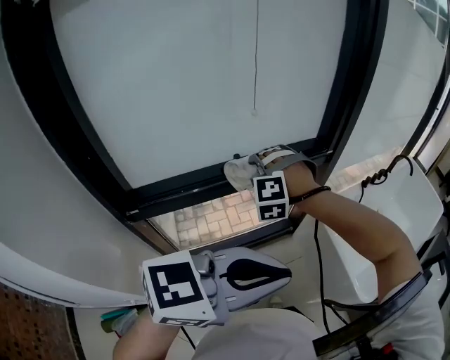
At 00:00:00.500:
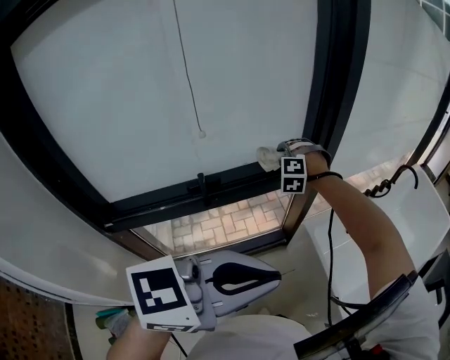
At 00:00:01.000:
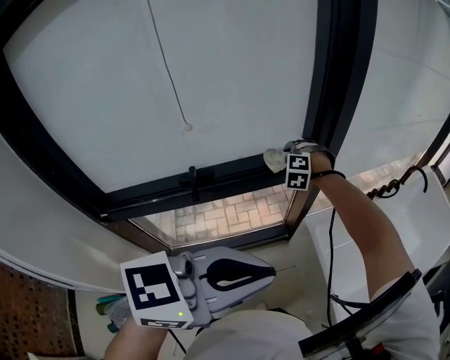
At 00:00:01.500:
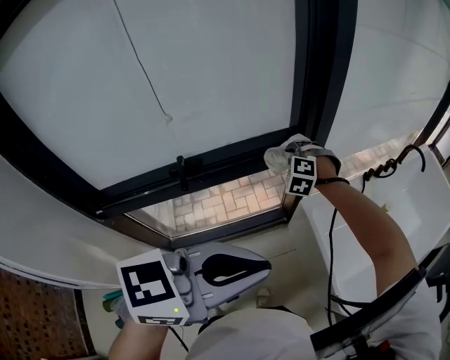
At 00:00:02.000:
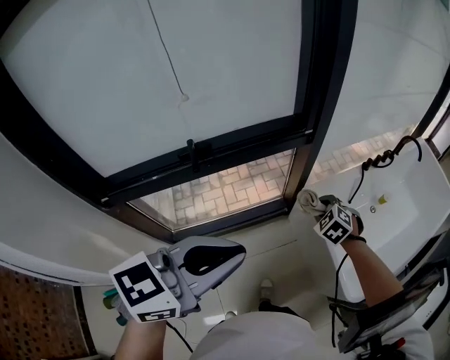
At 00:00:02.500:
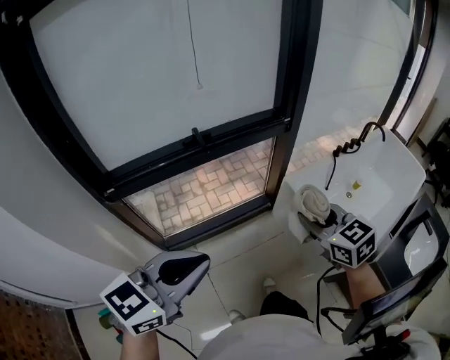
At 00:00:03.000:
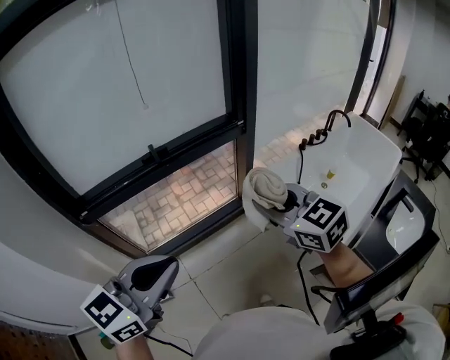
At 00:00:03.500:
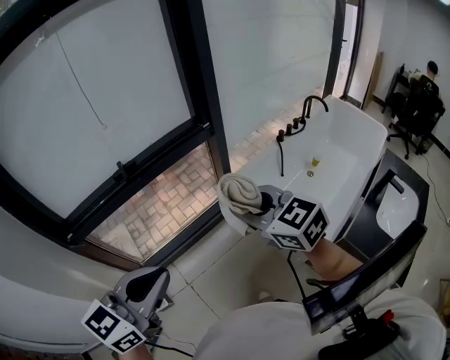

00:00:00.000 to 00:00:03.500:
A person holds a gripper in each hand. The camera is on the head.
00:00:00.000 to 00:00:02.000: The left gripper shifts approximately 10 cm forward, and swivels approximately 20 degrees, while the right gripper travels to the right and downward by roughly 40 cm, and rolls clockwise, seen from behind, by roughly 50 degrees.
00:00:02.000 to 00:00:03.500: The right gripper is displaced upward and backward by some 35 cm, and turns by roughly 40 degrees; the left gripper heads backward, covering roughly 10 cm.

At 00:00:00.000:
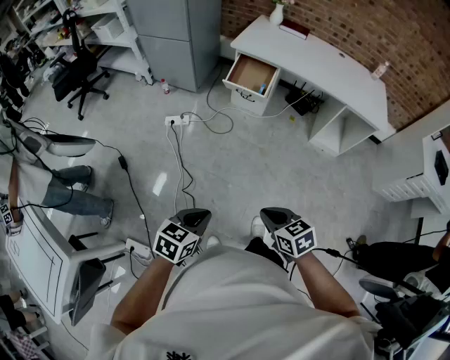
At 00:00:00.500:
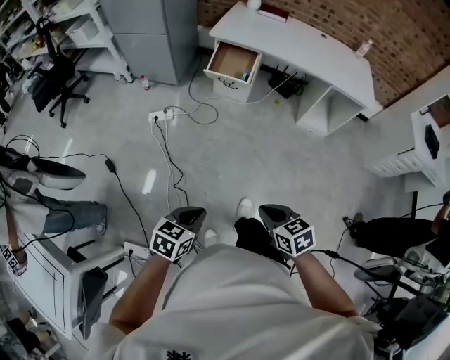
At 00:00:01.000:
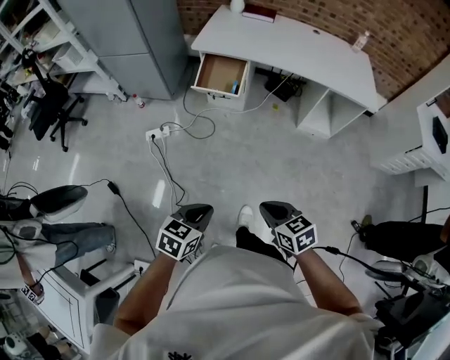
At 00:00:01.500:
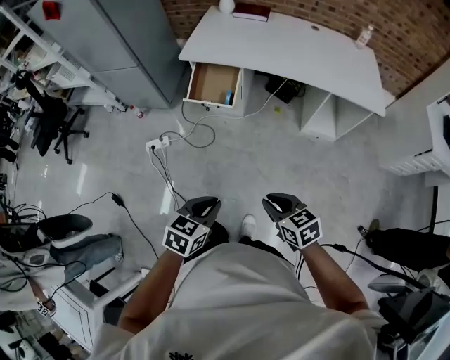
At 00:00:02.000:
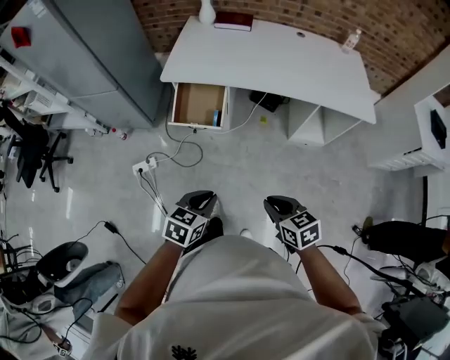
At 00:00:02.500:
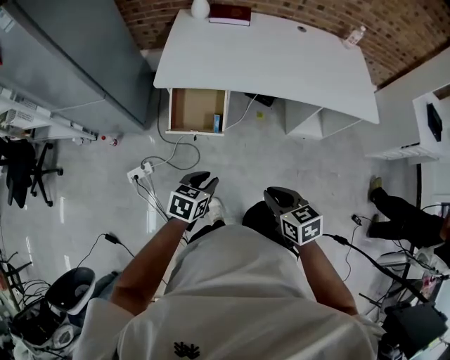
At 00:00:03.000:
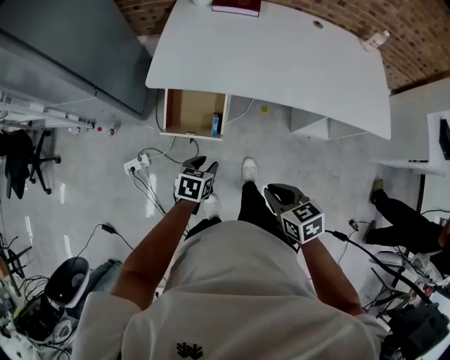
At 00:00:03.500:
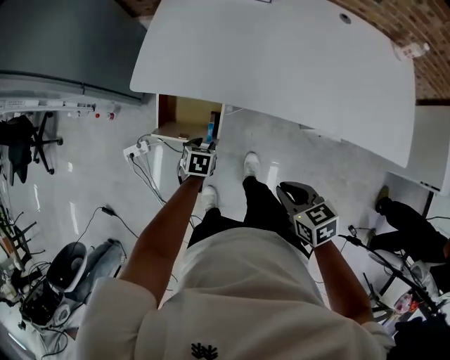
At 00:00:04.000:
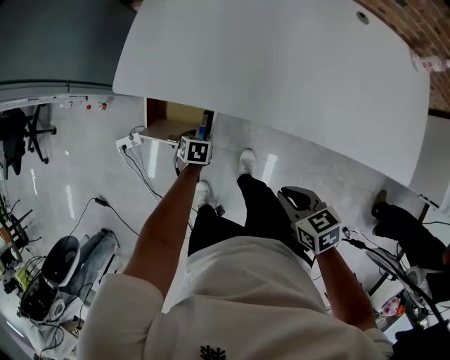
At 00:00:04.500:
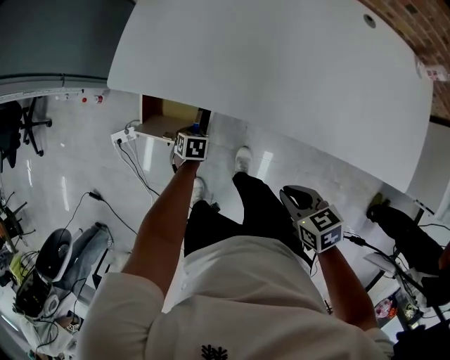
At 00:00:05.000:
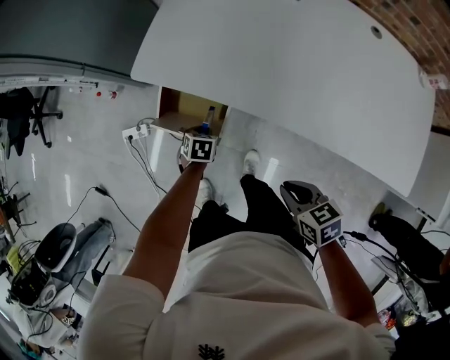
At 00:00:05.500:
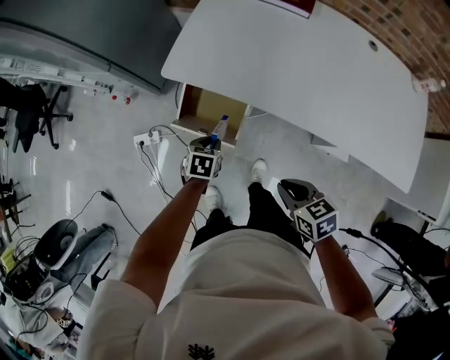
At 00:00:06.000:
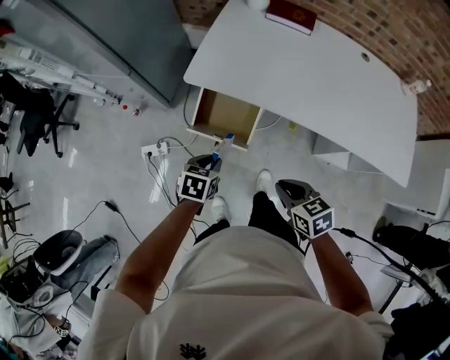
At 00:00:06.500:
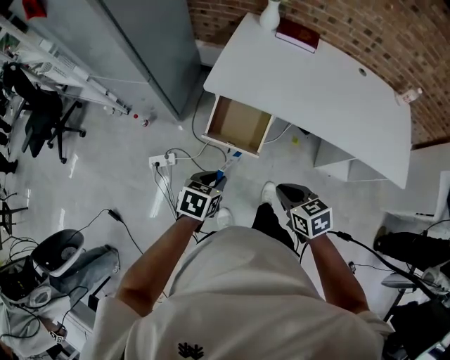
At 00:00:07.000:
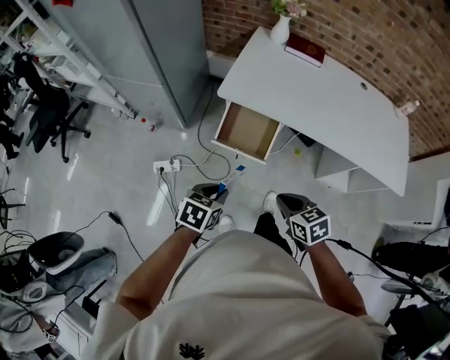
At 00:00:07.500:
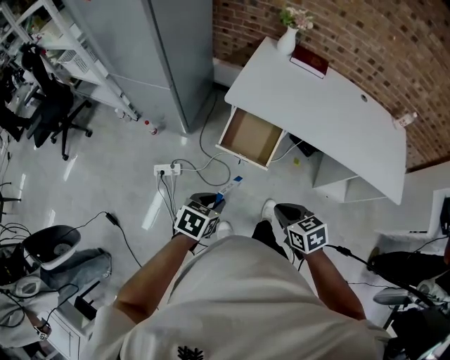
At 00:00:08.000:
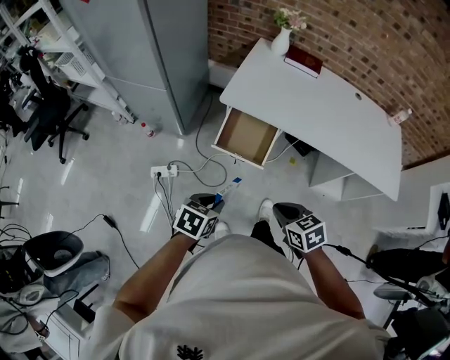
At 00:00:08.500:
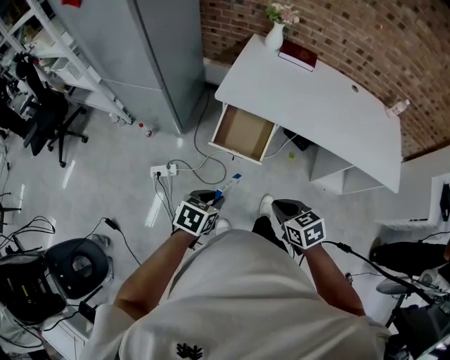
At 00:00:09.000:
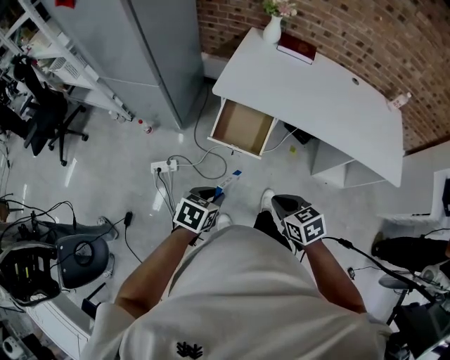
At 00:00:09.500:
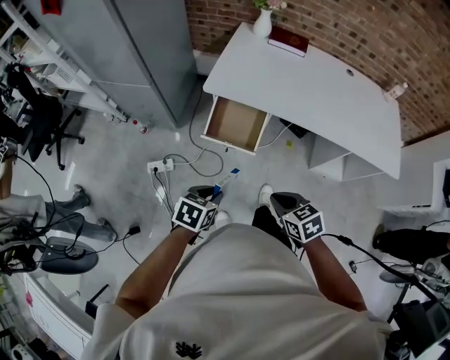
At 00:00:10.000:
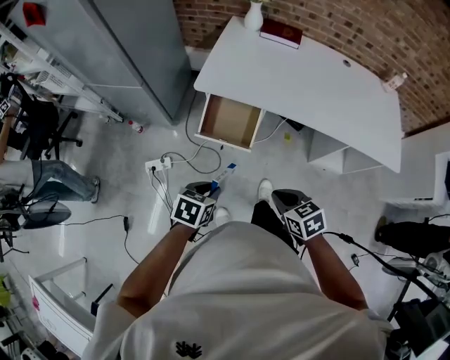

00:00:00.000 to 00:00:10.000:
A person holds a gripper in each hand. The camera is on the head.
00:00:00.000 to 00:00:02.000: Both grippers are carried forward, some 50 cm.
00:00:02.000 to 00:00:04.000: The two grippers travel together, about 50 cm. The right gripper turns by about 20 degrees. Meanwhile the left gripper points its fingers roughly 30 degrees further downward, and opens its fingers.
00:00:04.000 to 00:00:06.000: The right gripper changes place by some 25 cm; the left gripper moves upward, about 25 cm, rotates approximately 20 degrees, and closes its fingers.
00:00:06.000 to 00:00:08.000: The left gripper goes approximately 25 cm backward, to the left and upward. Meanwhile the right gripper goes roughly 20 cm to the left and backward.
00:00:08.000 to 00:00:10.000: The grippers both shift to the right by roughly 10 cm.

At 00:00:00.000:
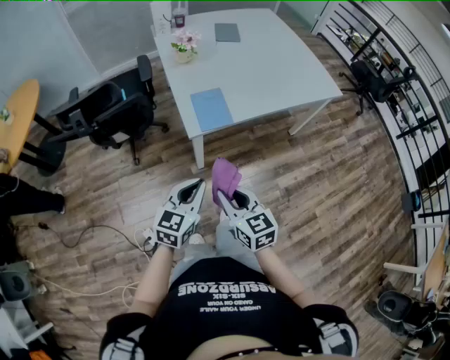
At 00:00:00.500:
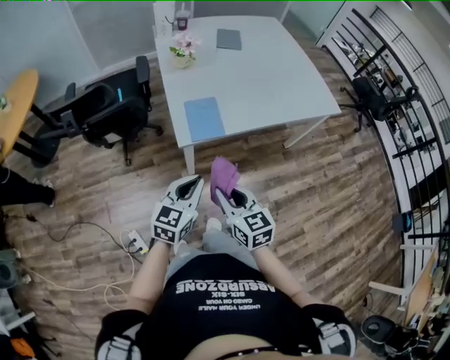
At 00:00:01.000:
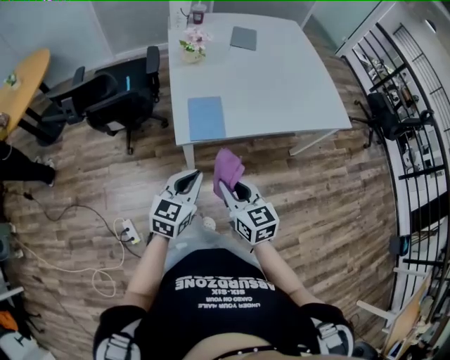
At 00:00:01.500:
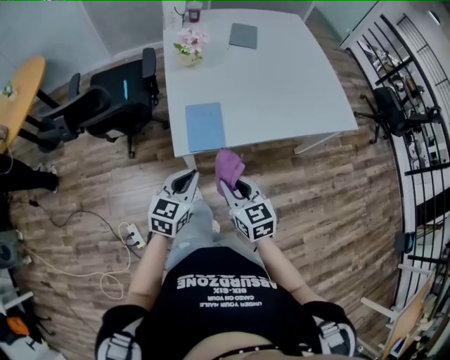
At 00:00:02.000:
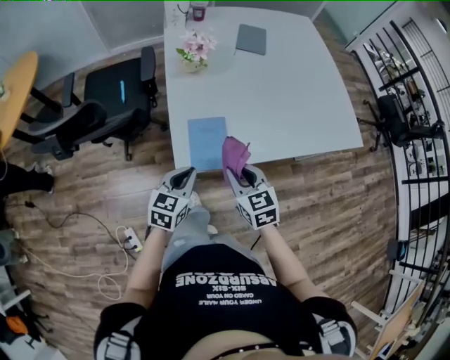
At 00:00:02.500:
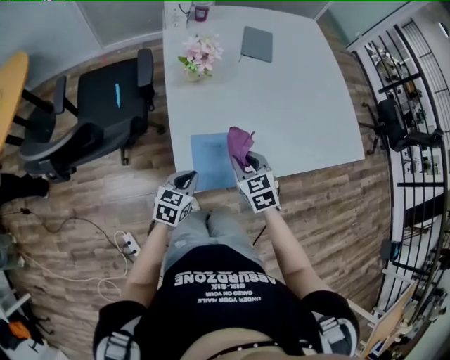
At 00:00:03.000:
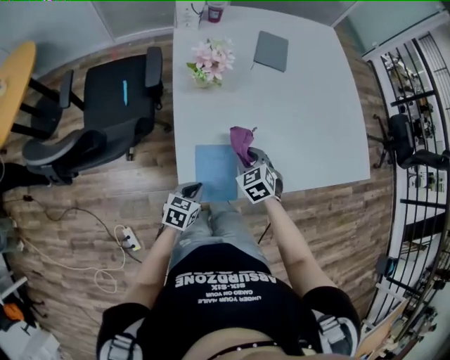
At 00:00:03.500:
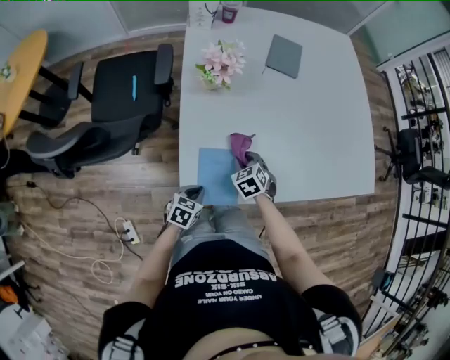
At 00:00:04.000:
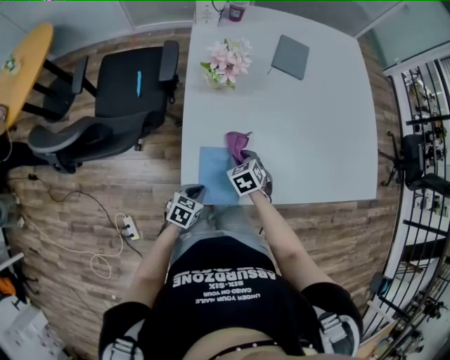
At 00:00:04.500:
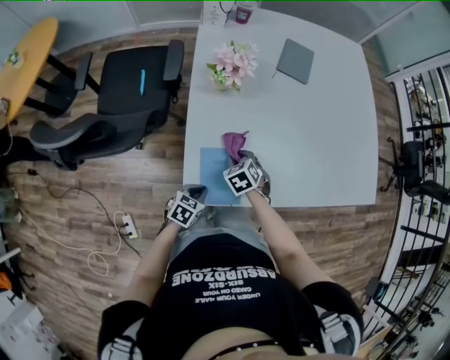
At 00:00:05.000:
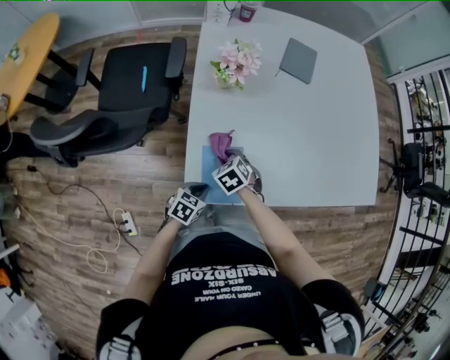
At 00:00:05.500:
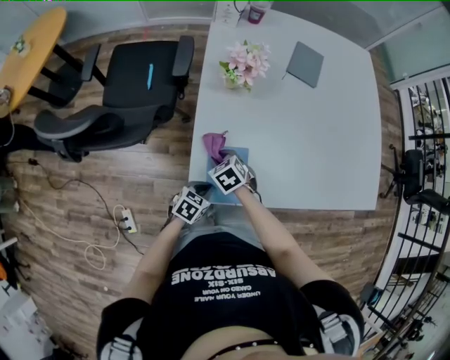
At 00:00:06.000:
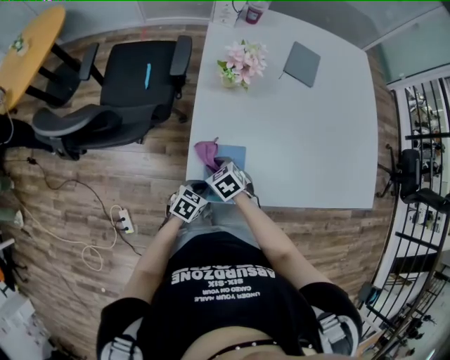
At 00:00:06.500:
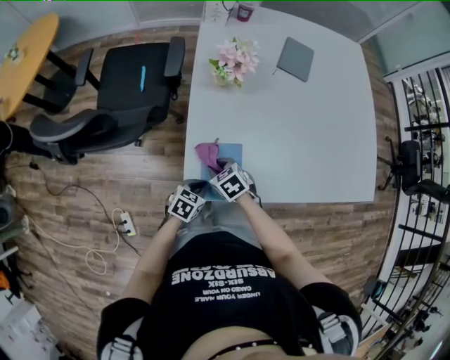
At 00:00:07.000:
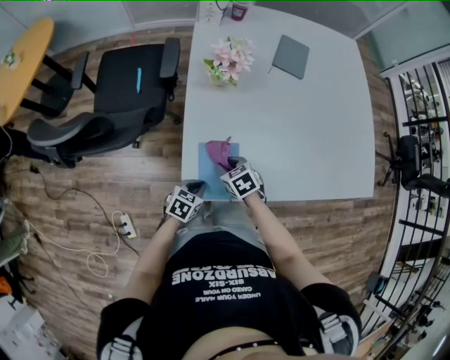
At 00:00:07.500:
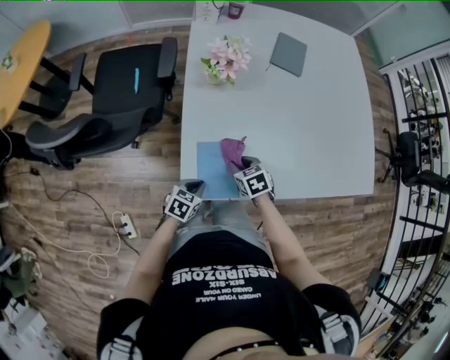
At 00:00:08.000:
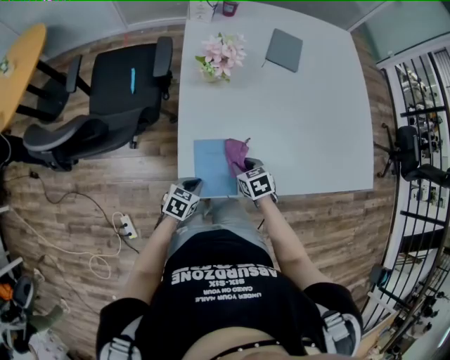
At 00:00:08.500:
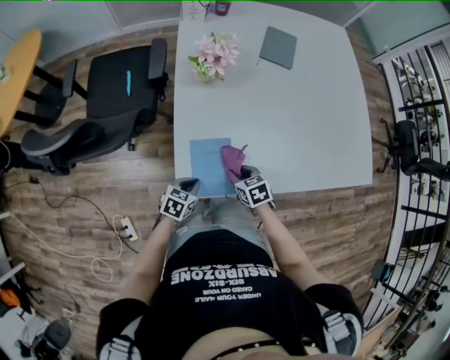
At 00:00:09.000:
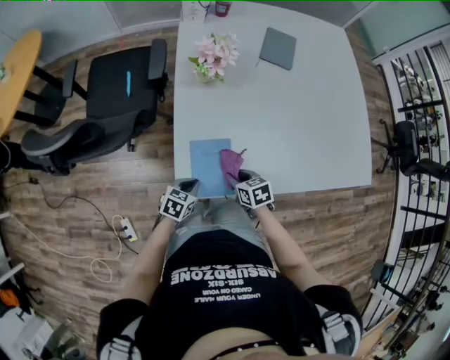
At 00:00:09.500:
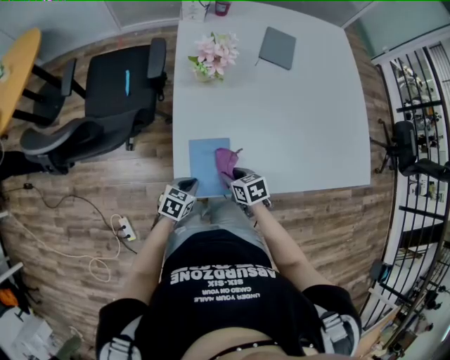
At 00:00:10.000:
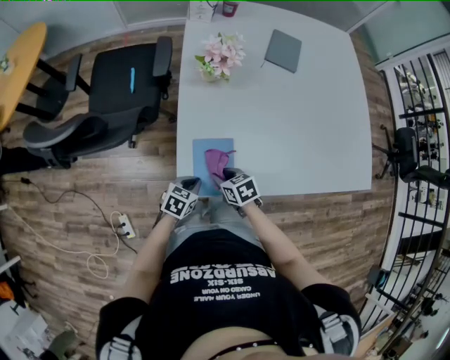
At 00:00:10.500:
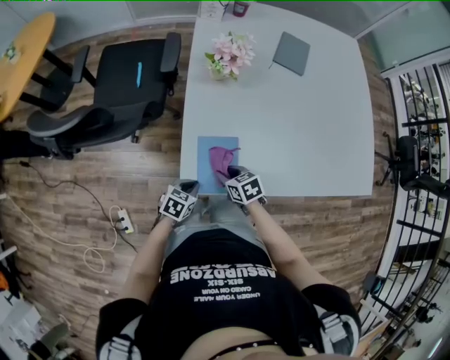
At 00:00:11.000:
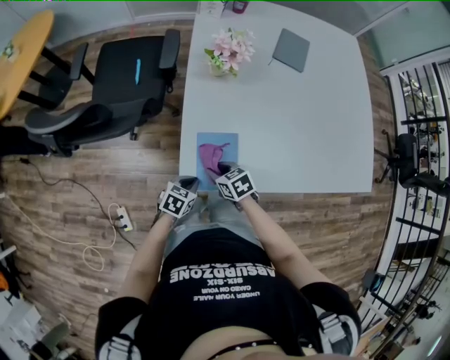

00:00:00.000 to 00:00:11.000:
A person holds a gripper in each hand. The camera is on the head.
00:00:00.000 to 00:00:02.000: The two grippers go approximately 30 cm forward.
00:00:02.000 to 00:00:03.500: The right gripper is displaced forward and downward by roughly 25 cm, and changes its angle by about 30 degrees, while the left gripper is displaced downward and forward by some 15 cm, and changes its angle by approximately 30 degrees.
00:00:03.500 to 00:00:05.500: The right gripper travels to the left by approximately 15 cm.
00:00:05.500 to 00:00:07.500: The right gripper heads to the right, covering some 10 cm.
00:00:07.500 to 00:00:09.000: The right gripper shifts some 5 cm backward.
00:00:09.000 to 00:00:11.000: The right gripper shifts roughly 10 cm to the left.

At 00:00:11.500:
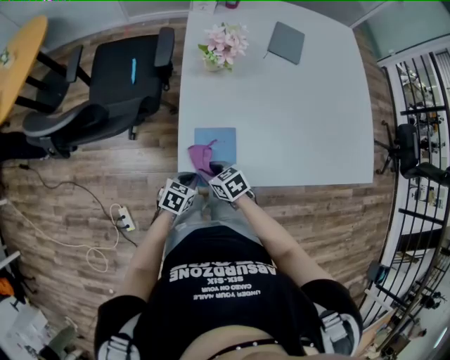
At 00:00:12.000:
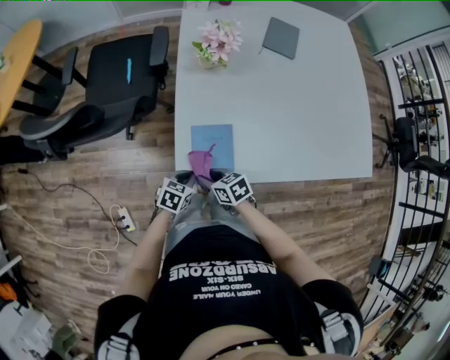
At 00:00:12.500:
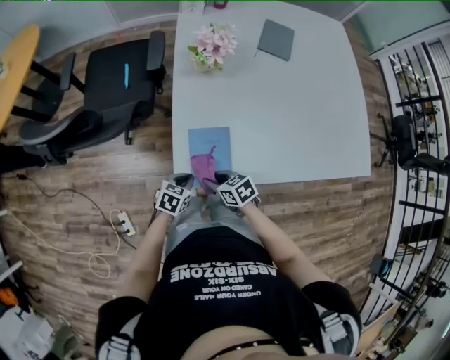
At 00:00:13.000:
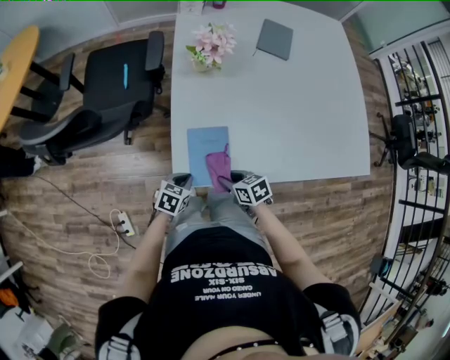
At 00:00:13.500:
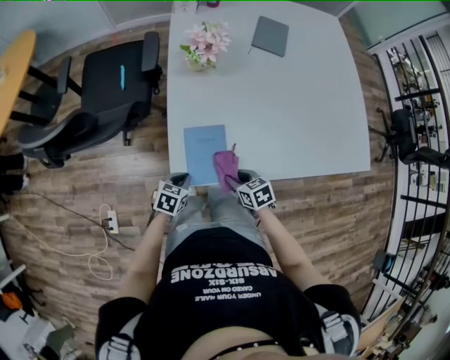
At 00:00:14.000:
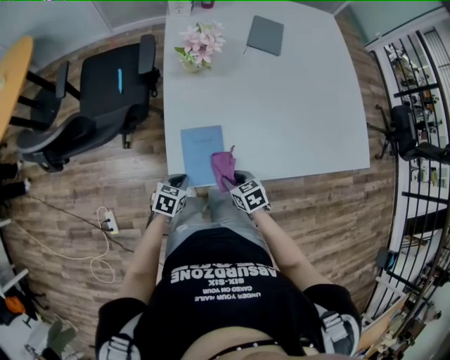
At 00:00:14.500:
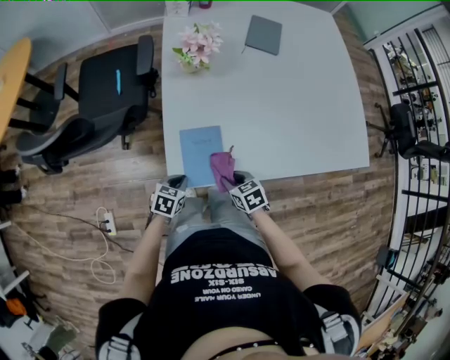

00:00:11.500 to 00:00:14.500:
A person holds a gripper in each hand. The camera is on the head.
00:00:11.500 to 00:00:13.000: The right gripper travels to the right by some 10 cm.
00:00:13.000 to 00:00:14.500: The grippers move only a little.
